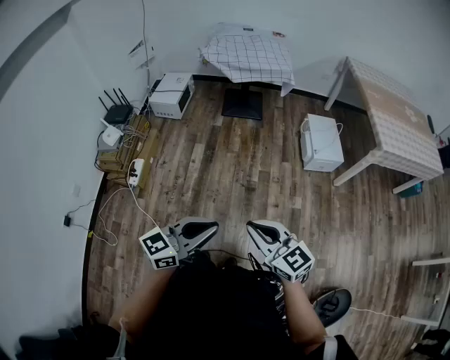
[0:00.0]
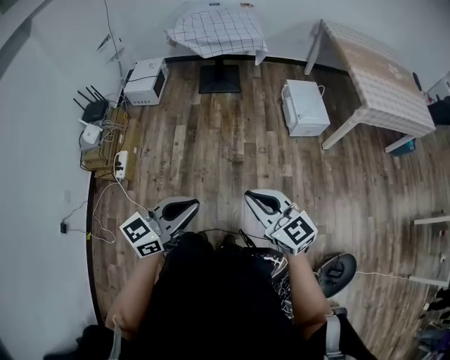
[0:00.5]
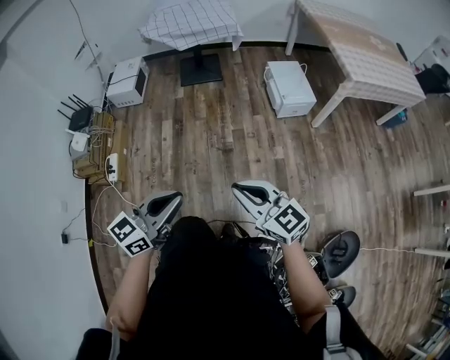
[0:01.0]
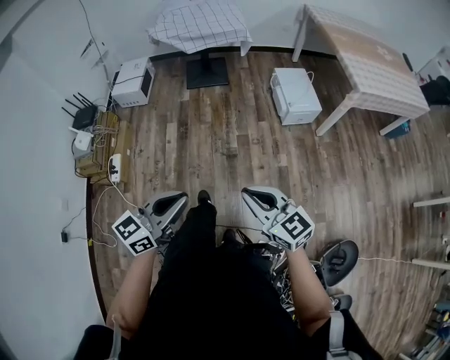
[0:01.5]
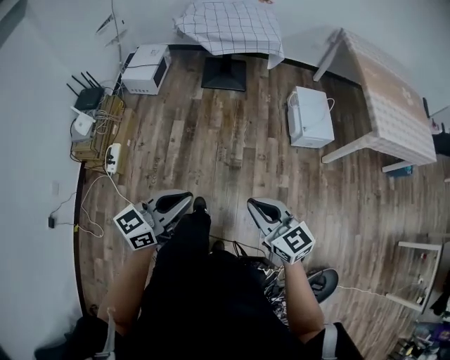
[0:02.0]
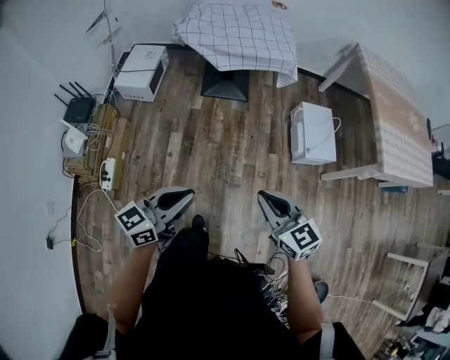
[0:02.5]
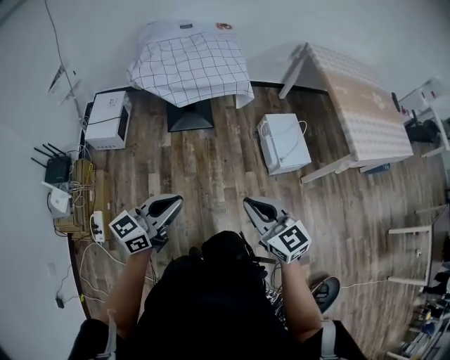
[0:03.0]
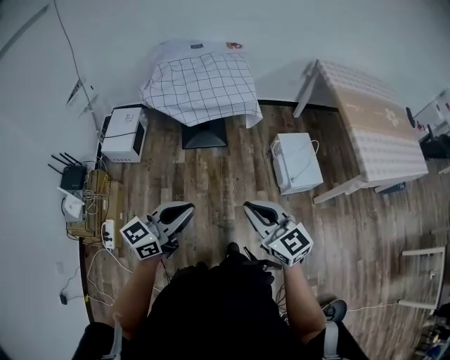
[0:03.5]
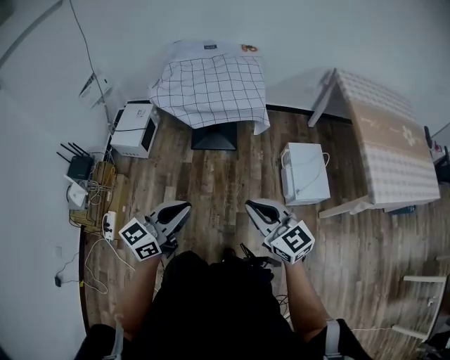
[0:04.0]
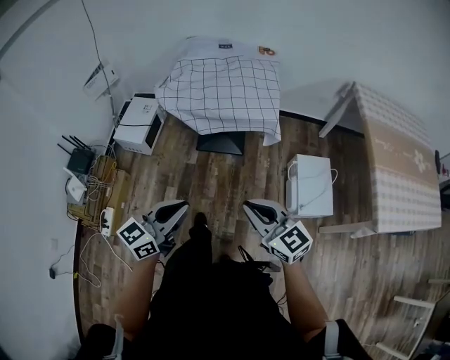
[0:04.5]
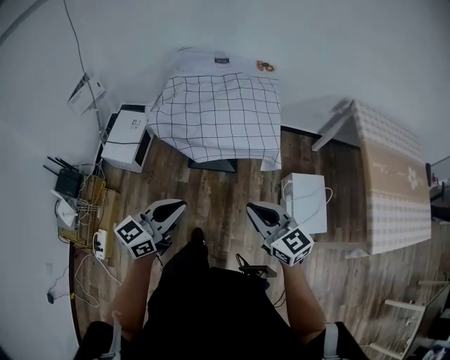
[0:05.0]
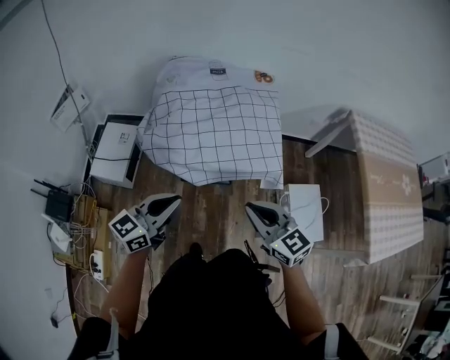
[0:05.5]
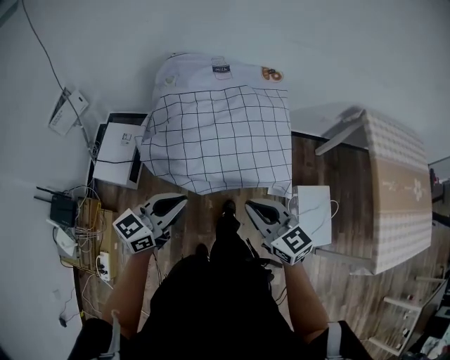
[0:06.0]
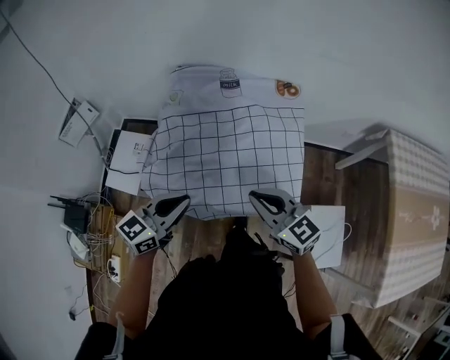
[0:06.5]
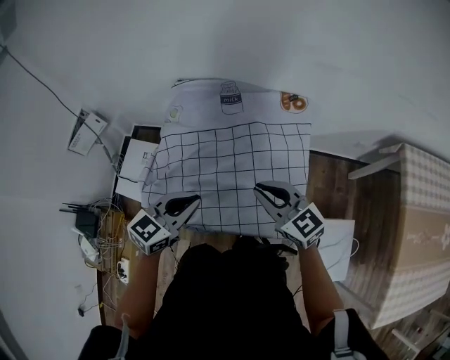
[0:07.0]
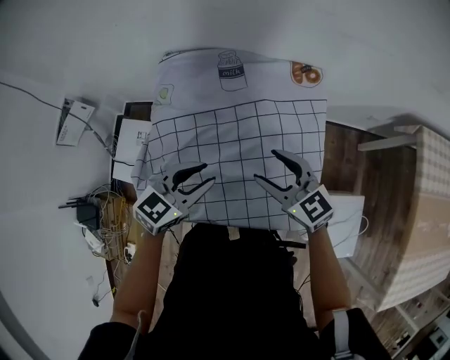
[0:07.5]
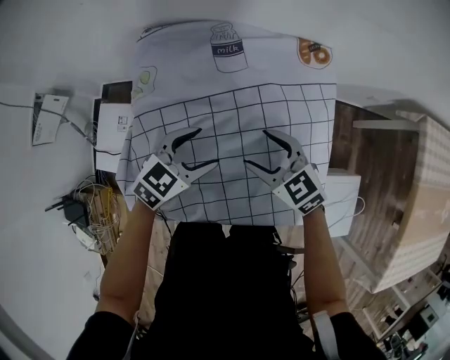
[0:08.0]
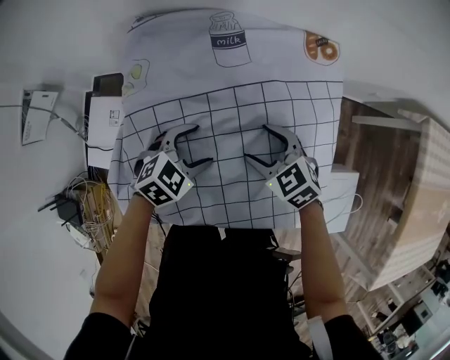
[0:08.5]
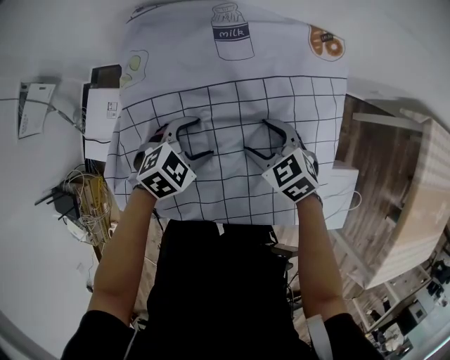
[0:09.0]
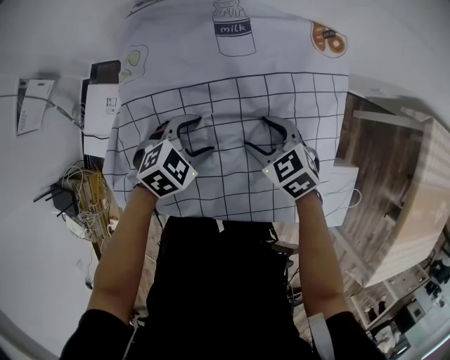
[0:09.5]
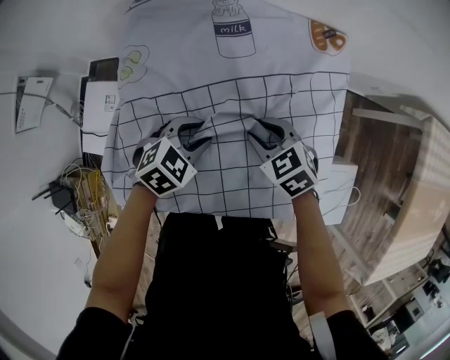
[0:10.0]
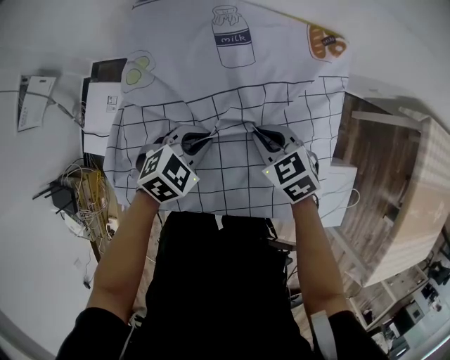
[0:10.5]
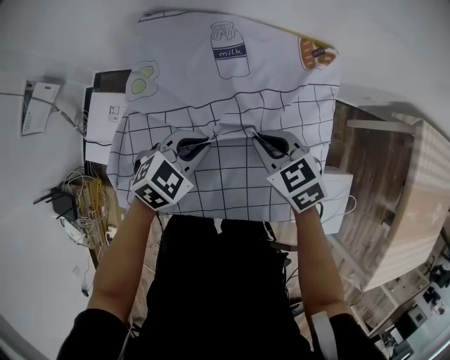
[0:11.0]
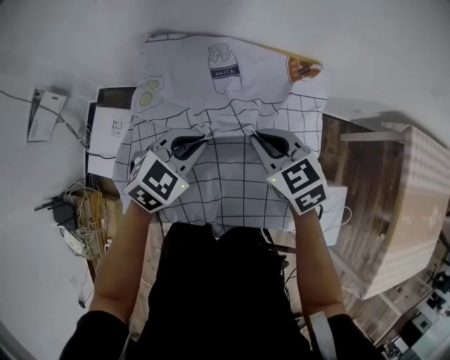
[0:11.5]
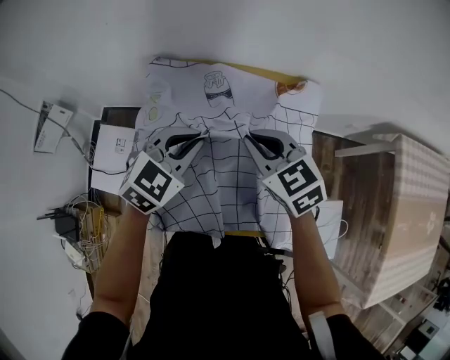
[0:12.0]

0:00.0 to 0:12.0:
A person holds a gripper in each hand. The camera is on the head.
0:00.0 to 0:02.0: The two grippers go roughly 15 cm forward.
0:02.0 to 0:04.0: Both grippers move forward, some 35 cm.
0:04.0 to 0:06.0: Both grippers are carried forward, about 50 cm.
0:06.0 to 0:08.0: The left gripper is displaced forward and downward by roughly 40 cm, tilts its fingers some 30 degrees downward, and opens; the right gripper travels forward by roughly 35 cm, and opens.
0:08.0 to 0:10.0: The two grippers go roughly 5 cm downward. The left gripper closes. The right gripper closes up.
0:10.0 to 0:12.0: Both grippers move upward, roughly 20 cm. The left gripper turns by roughly 20 degrees, and closes its fingers. The right gripper changes its angle by approximately 20 degrees, and closes up.

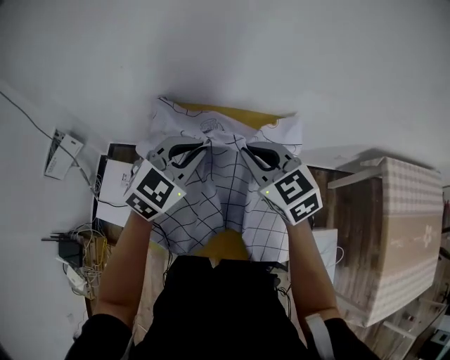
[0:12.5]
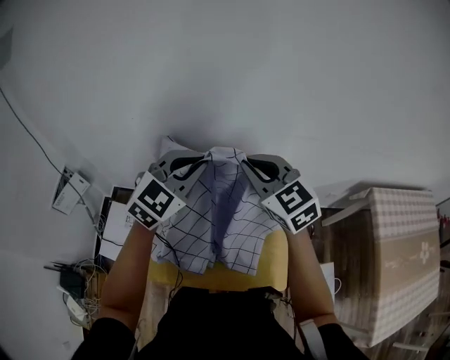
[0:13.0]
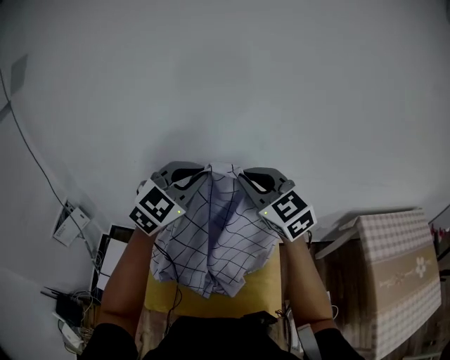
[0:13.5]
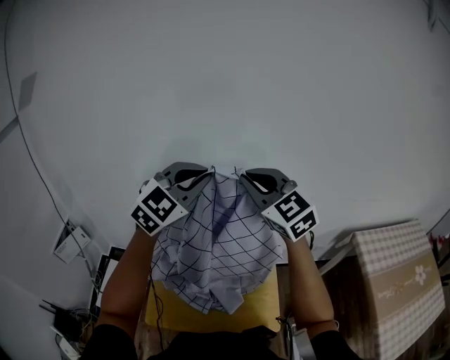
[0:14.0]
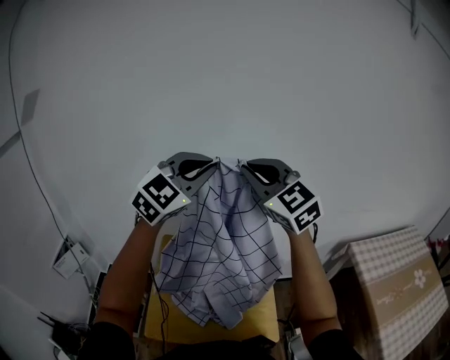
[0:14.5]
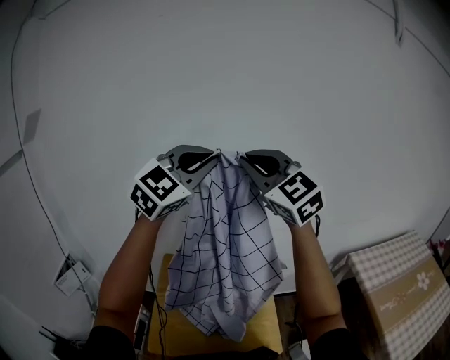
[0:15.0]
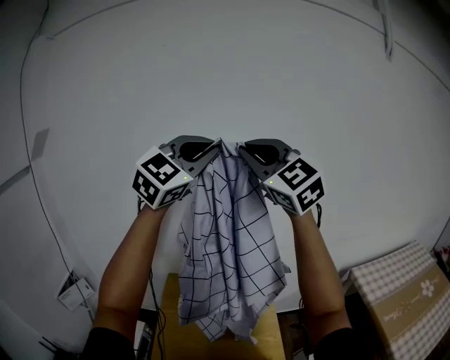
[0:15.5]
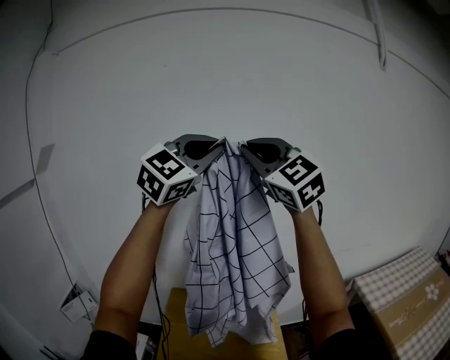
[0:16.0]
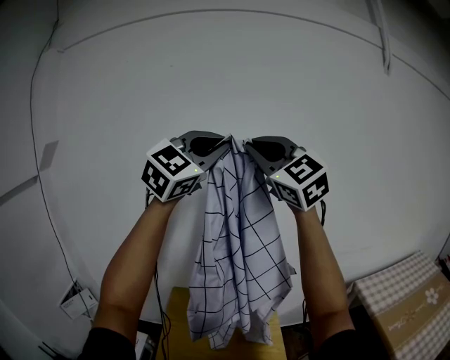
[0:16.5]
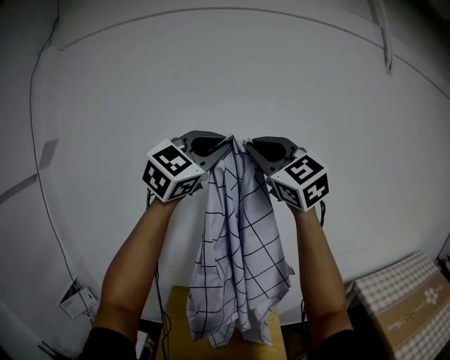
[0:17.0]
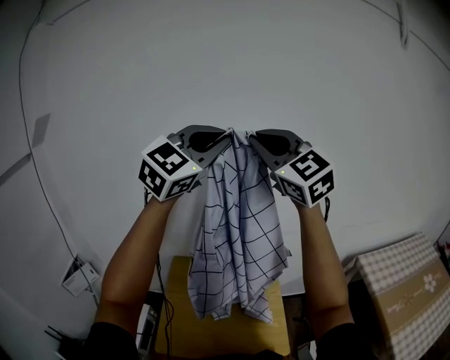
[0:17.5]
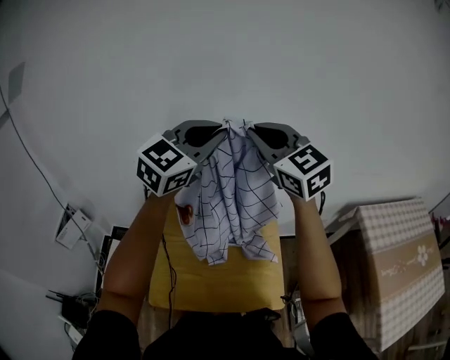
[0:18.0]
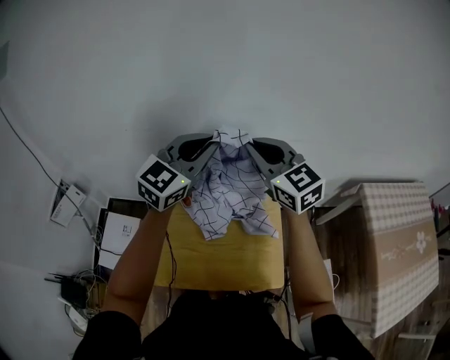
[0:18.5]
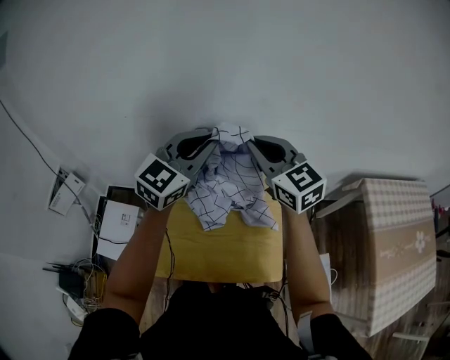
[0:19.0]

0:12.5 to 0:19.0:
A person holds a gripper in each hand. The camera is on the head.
0:12.5 to 0:14.5: The grippers both shift upward by about 35 cm. The right gripper swivels about 40 degrees; the left gripper rotates approximately 30 degrees.
0:14.5 to 0:17.0: Both grippers travel together upward, about 25 cm.
0:17.0 to 0:19.0: The grippers both shift downward by some 40 cm. The left gripper rotates about 40 degrees. The right gripper rotates roughly 40 degrees.

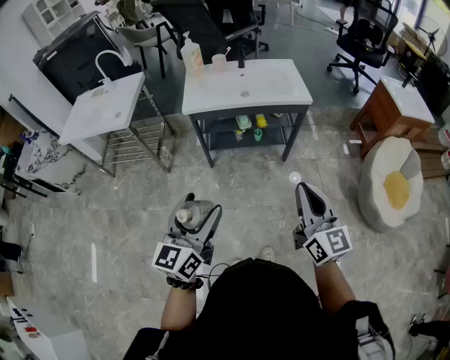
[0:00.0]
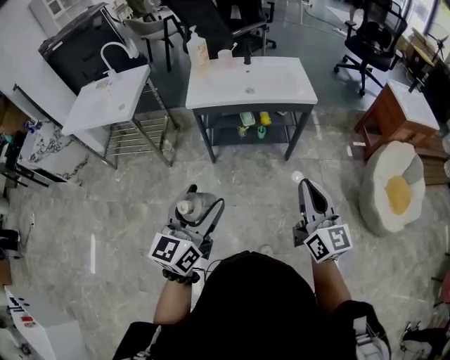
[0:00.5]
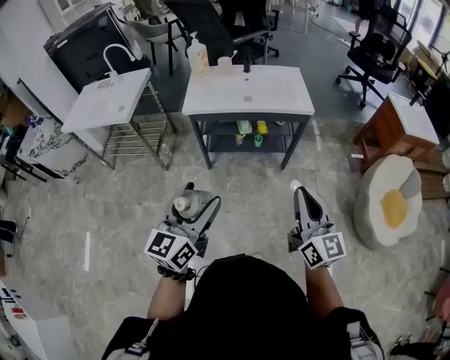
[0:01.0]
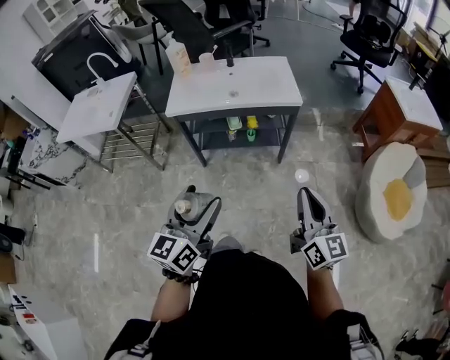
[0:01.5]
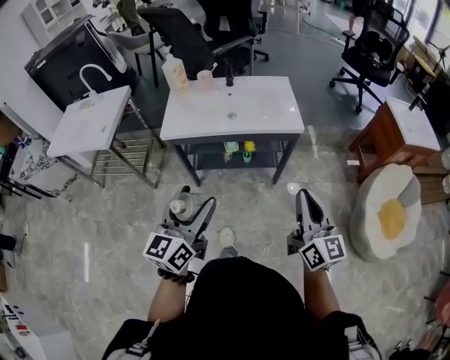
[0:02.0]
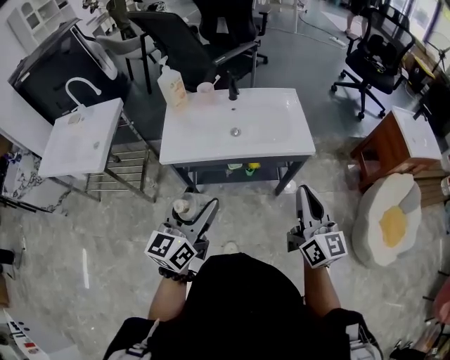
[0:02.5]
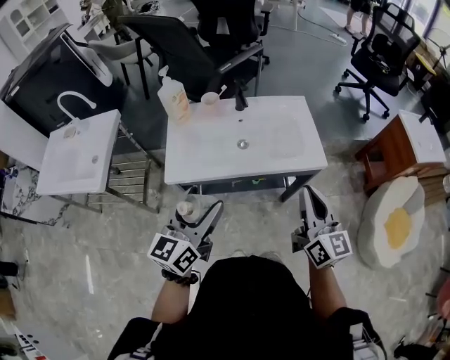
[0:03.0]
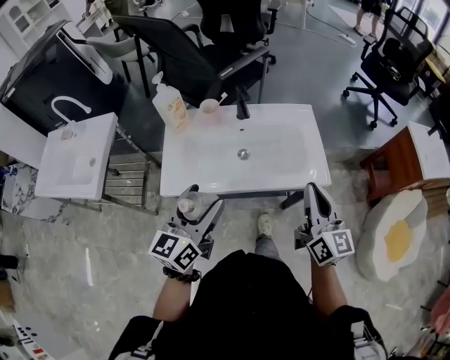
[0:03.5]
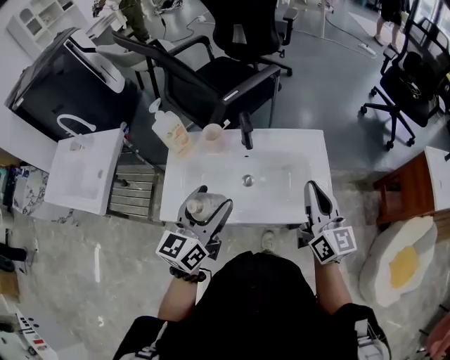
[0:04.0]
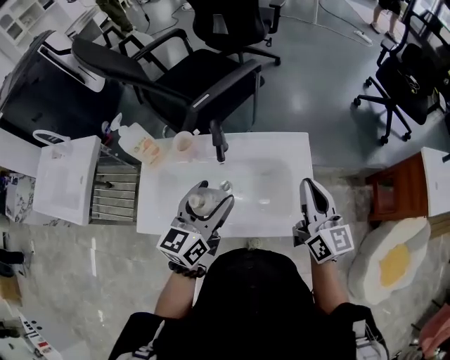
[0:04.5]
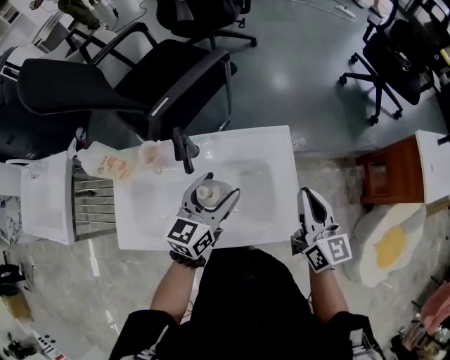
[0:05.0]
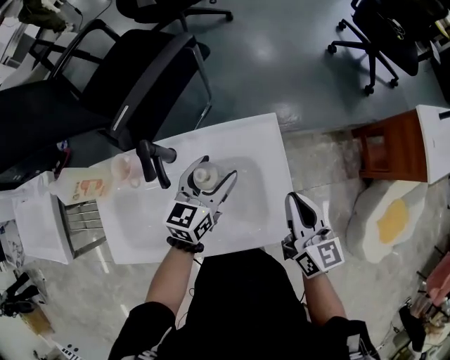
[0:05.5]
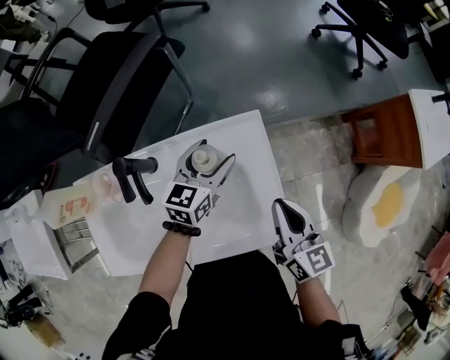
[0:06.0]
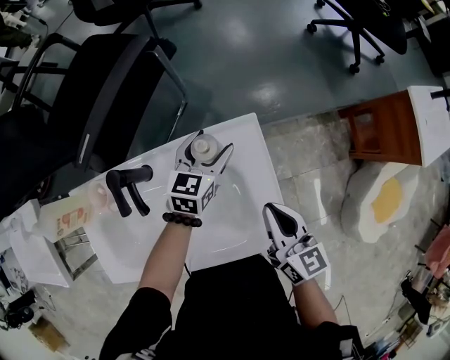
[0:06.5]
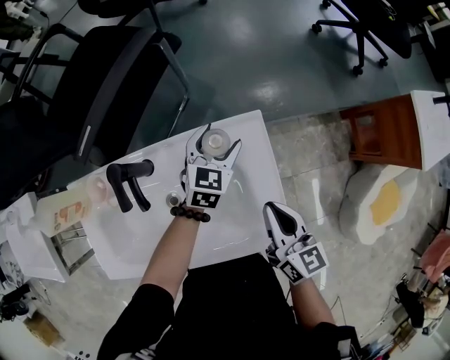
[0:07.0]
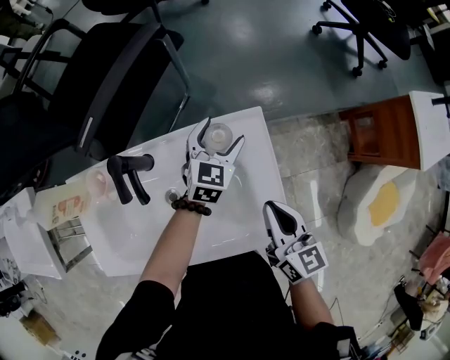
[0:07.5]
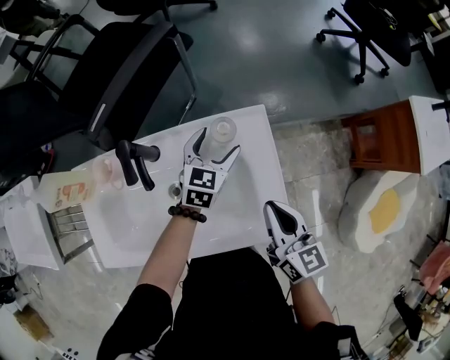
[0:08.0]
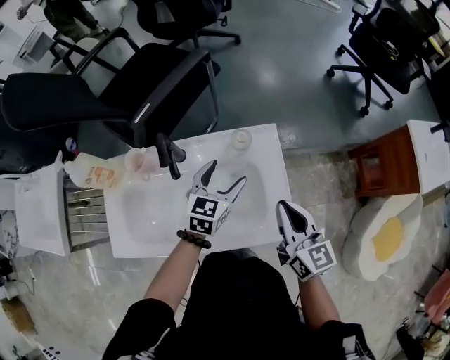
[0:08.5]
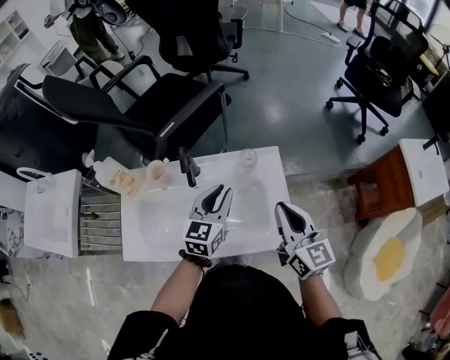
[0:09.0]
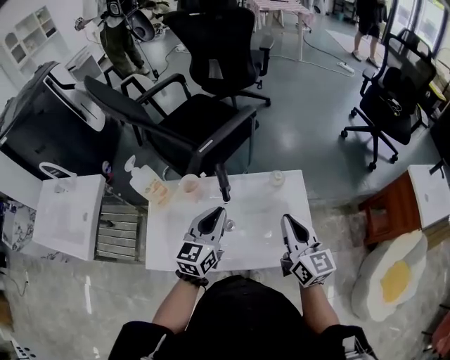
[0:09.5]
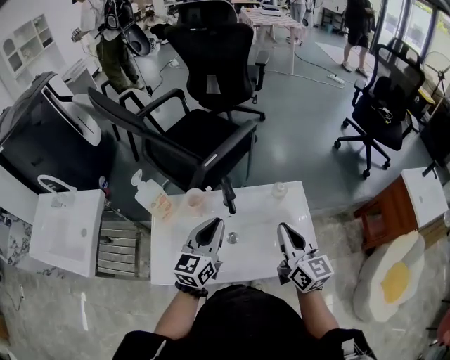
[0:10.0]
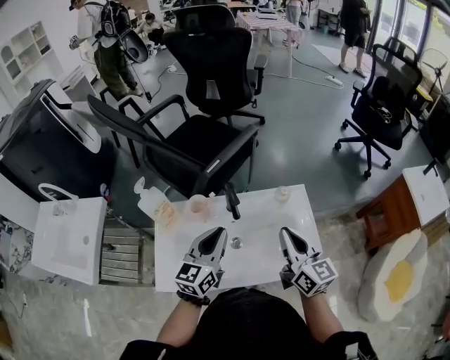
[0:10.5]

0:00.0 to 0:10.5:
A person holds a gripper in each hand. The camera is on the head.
0:00.0 to 0:02.0: The grippers both shift forward and to the right by some 20 cm.
0:02.0 to 0:04.0: Both grippers are carried forward, approximately 40 cm.
0:04.0 to 0:06.5: The left gripper moves forward, downward and to the right, approximately 50 cm, and changes its angle by some 30 degrees; the right gripper moves downward, forward and to the right, some 20 cm, and turns by roughly 30 degrees.
0:06.5 to 0:08.5: The right gripper goes approximately 5 cm upward. The left gripper goes some 15 cm backward and upward.
0:08.5 to 0:10.5: The right gripper moves to the left and upward, about 20 cm, while the left gripper moves upward, to the left and backward, roughly 30 cm, turns by approximately 20 degrees, and closes.
